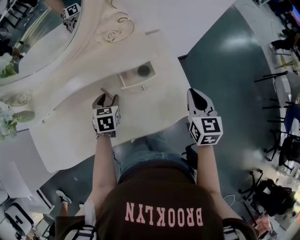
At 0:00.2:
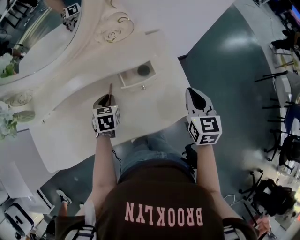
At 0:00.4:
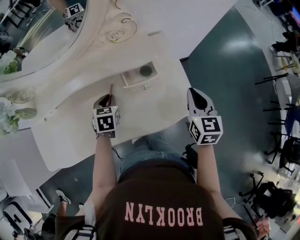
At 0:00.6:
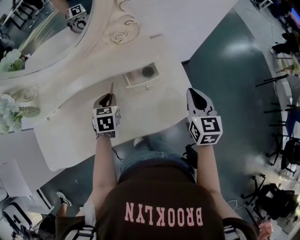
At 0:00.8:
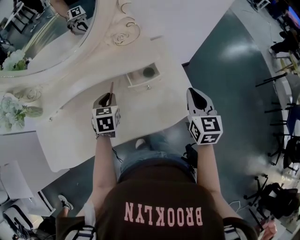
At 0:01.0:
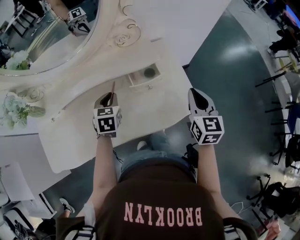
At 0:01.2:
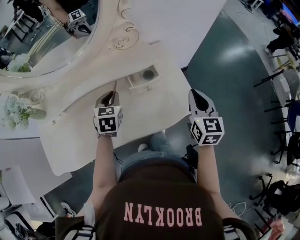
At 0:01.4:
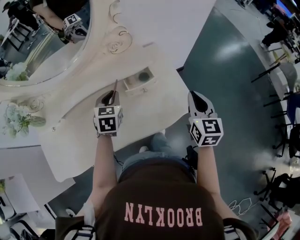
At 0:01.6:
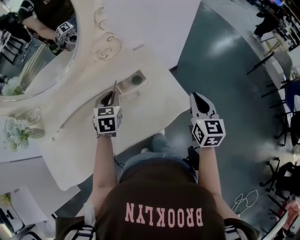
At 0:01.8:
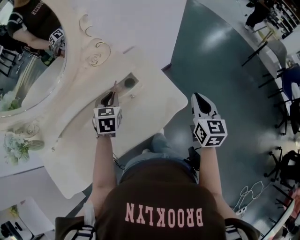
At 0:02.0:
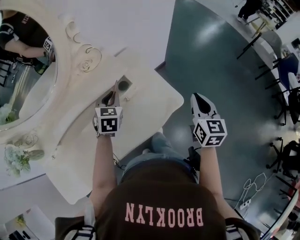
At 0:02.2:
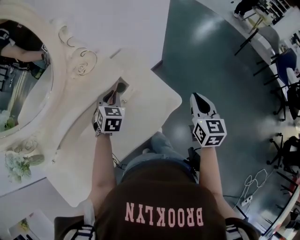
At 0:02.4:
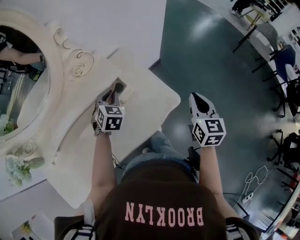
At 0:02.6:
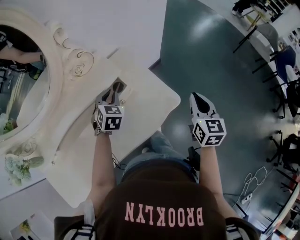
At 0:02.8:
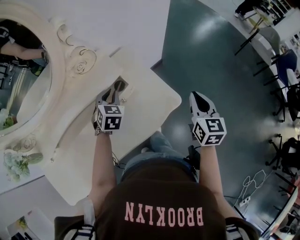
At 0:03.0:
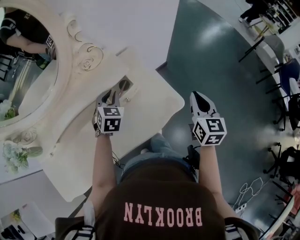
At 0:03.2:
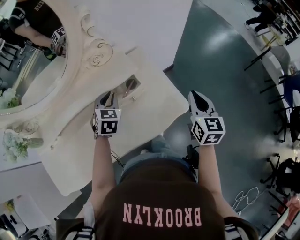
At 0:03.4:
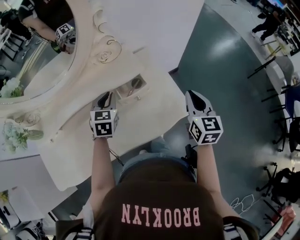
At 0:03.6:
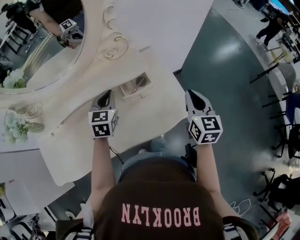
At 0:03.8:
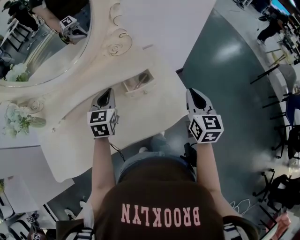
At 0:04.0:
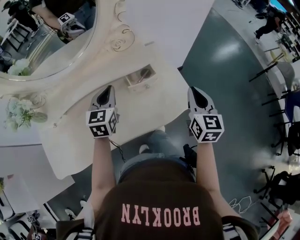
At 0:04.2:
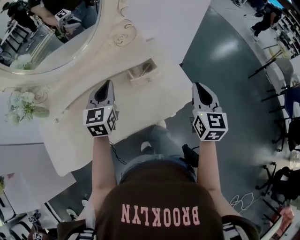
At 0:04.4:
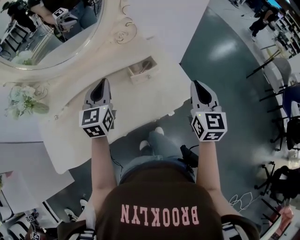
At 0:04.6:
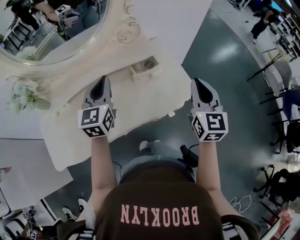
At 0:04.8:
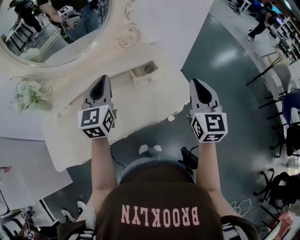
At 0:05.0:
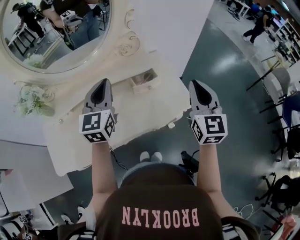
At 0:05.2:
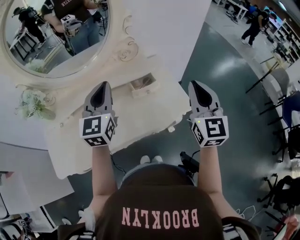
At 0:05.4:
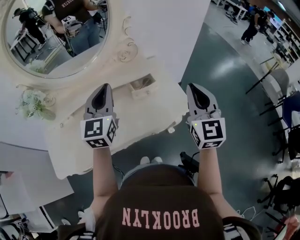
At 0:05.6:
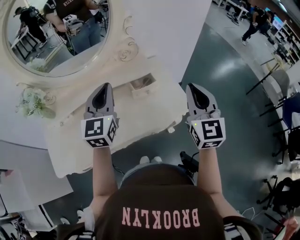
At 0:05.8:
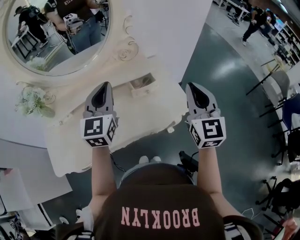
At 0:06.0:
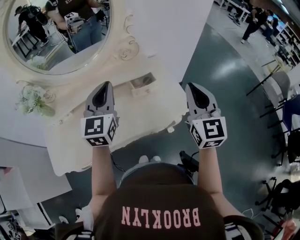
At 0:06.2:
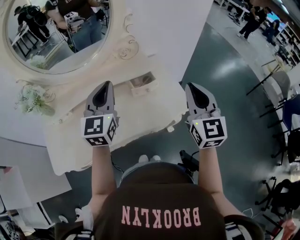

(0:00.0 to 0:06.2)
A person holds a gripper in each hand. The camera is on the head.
0:00.0 - 0:01.6: The left gripper goes some 10 cm upward, turns by roughly 20 degrees, and closes its fingers. Meanwhile the right gripper travels backward by approximately 5 cm.
0:01.6 - 0:03.2: The right gripper travels to the right and back again, some 10 cm each way, while the left gripper goes to the right and returns, some 10 cm each way.
0:03.2 - 0:04.6: The left gripper moves upward, backward and to the left, some 20 cm, and swivels about 40 degrees; the right gripper goes about 15 cm to the left, upward and backward.
0:04.6 - 0:06.2: Both grippers travel together upward, about 5 cm.

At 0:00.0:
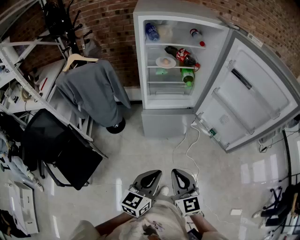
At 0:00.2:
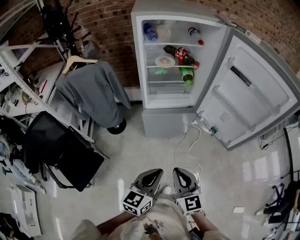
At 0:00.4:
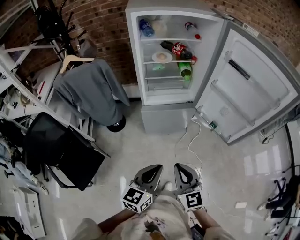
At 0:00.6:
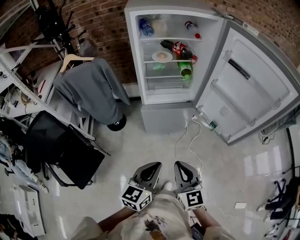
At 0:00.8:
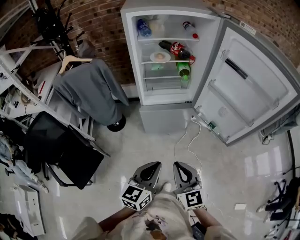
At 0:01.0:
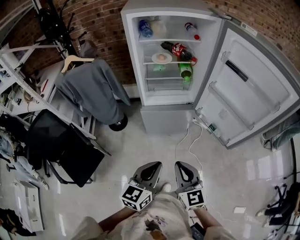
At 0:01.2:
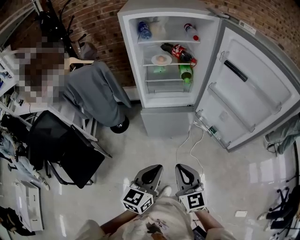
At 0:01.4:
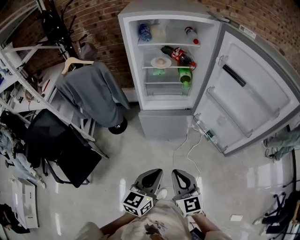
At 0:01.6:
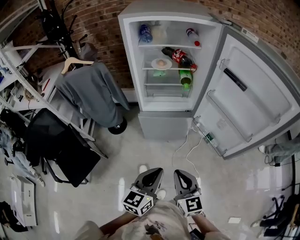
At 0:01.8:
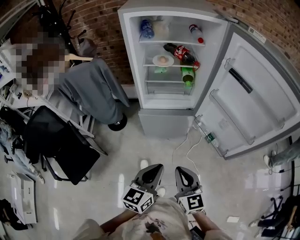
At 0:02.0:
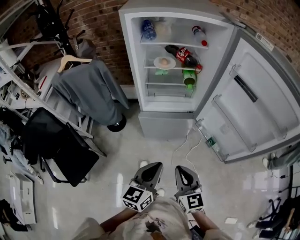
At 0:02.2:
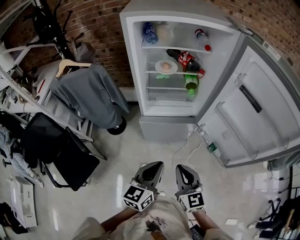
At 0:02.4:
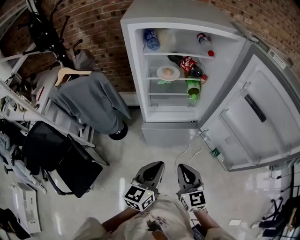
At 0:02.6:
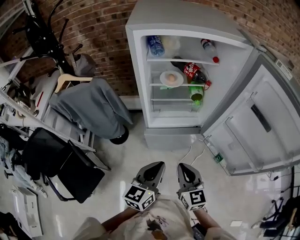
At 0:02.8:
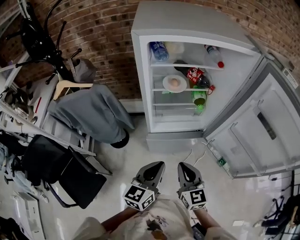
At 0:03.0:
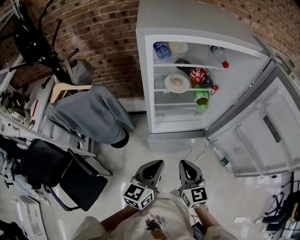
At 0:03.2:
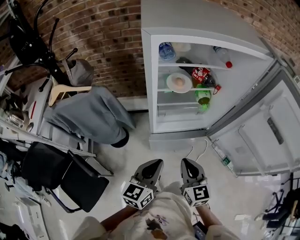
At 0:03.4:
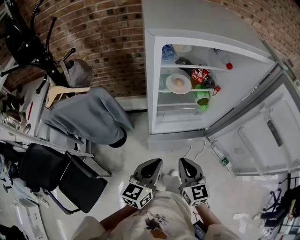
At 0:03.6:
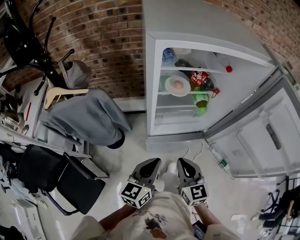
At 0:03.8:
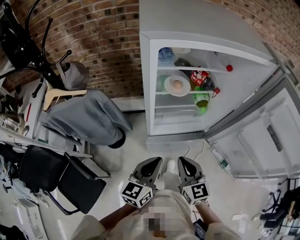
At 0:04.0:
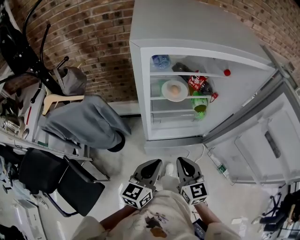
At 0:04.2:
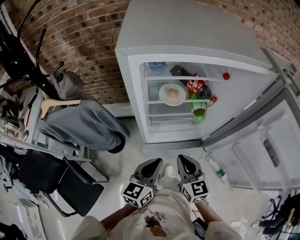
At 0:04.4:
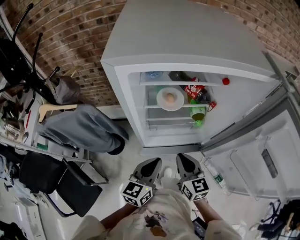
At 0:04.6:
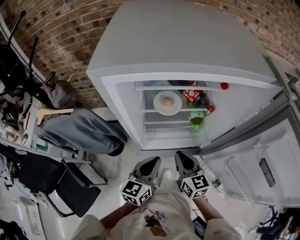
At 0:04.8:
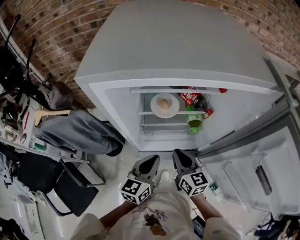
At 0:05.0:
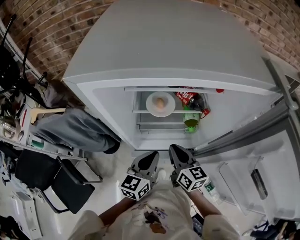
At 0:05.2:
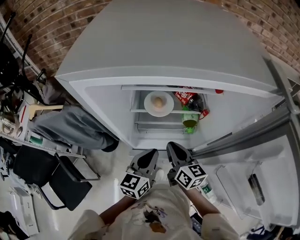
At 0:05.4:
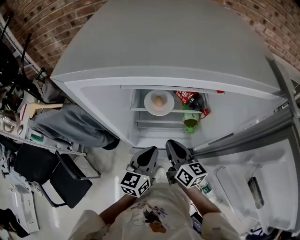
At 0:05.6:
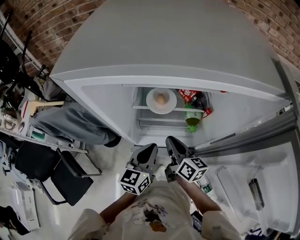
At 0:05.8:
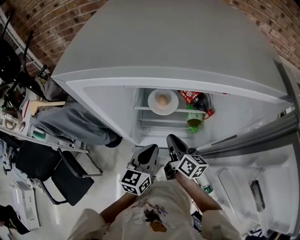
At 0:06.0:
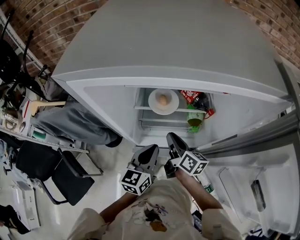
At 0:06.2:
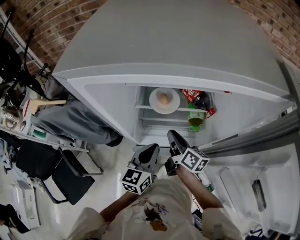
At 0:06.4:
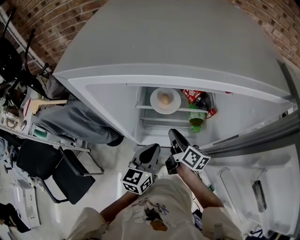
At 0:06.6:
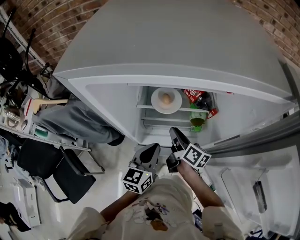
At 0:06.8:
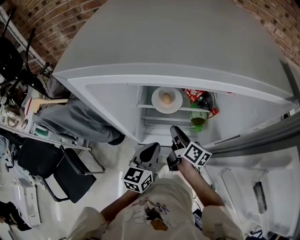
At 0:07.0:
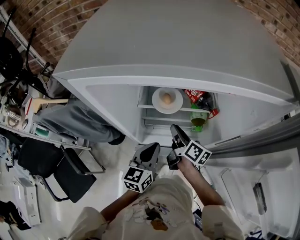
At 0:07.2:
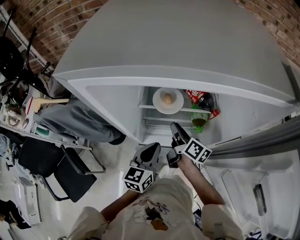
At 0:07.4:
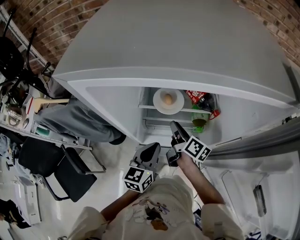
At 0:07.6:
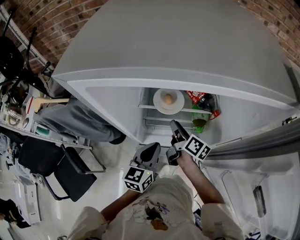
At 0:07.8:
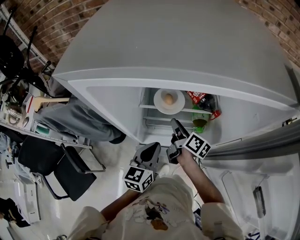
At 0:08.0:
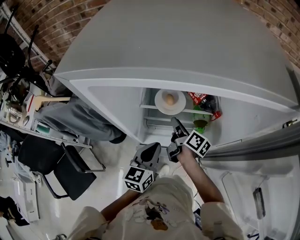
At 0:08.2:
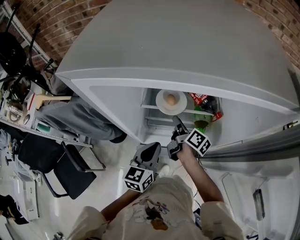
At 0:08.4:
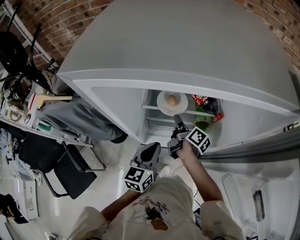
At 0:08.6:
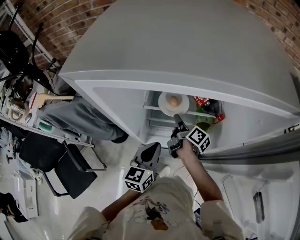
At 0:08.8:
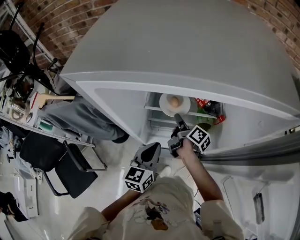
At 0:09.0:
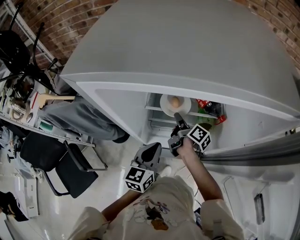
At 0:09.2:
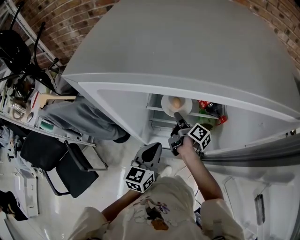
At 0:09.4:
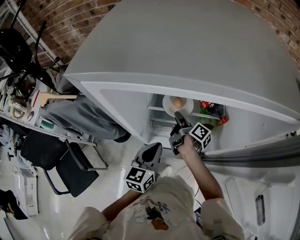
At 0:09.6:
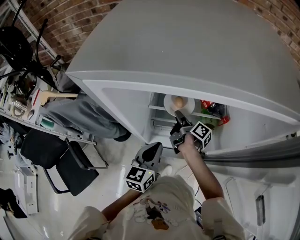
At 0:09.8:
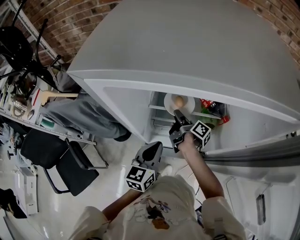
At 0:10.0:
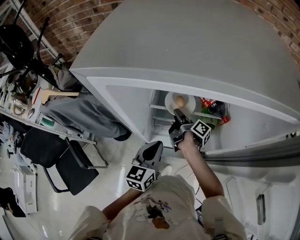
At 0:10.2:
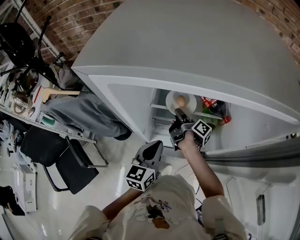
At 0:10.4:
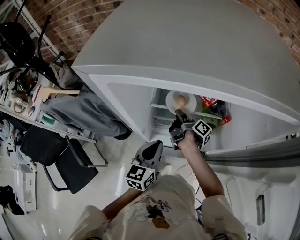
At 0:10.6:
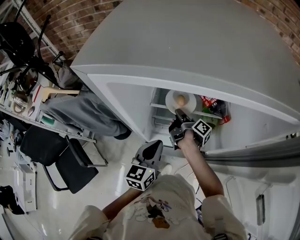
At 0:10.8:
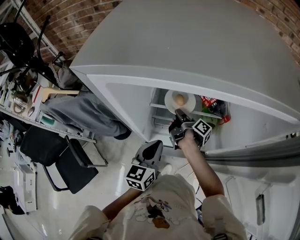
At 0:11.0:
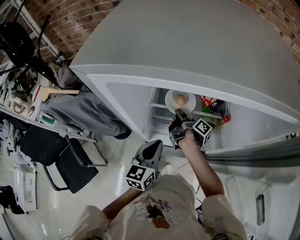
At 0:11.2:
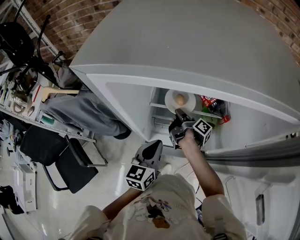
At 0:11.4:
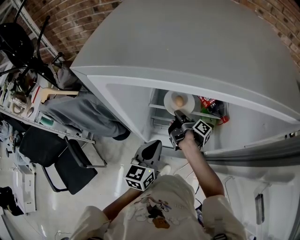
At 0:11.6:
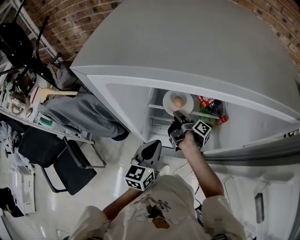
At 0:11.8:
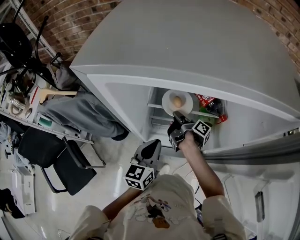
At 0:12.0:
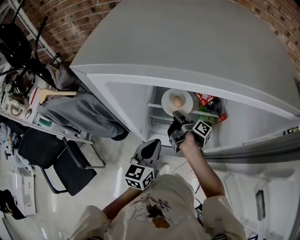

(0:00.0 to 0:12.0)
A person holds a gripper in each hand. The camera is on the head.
0:00.0 - 0:01.6: Both grippers move to the right, about 10 cm.
0:01.6 - 0:03.0: Both grippers travel together forward and to the left, about 30 cm.
0:03.0 - 0:04.4: Both grippers travel together forward, roughly 15 cm.
0:04.4 - 0:06.0: The right gripper goes approximately 15 cm forward, and rolls clockwise, seen from behind, by about 40 degrees, while the left gripper shifts some 10 cm forward and to the right.
0:06.0 - 0:07.6: The right gripper goes approximately 5 cm forward.
0:07.6 - 0:09.0: The right gripper heads forward, covering roughly 5 cm.
0:09.0 - 0:10.4: The right gripper closes up.
0:10.4 - 0:12.0: The grippers make only small movements.

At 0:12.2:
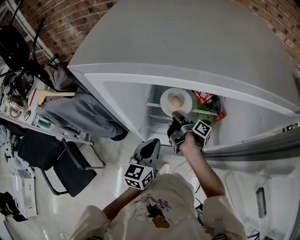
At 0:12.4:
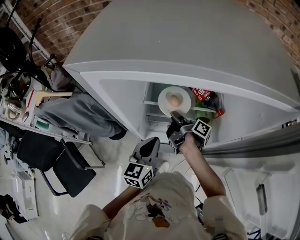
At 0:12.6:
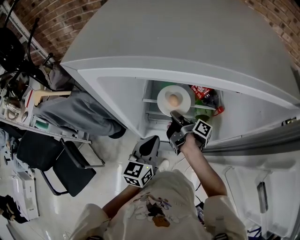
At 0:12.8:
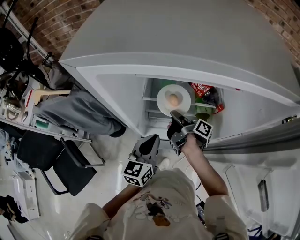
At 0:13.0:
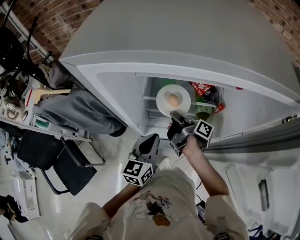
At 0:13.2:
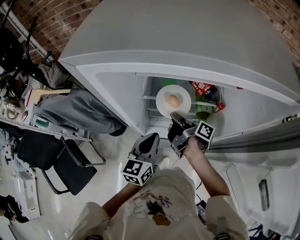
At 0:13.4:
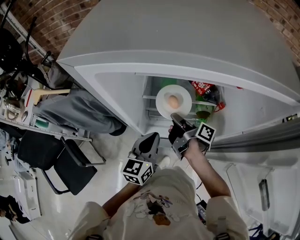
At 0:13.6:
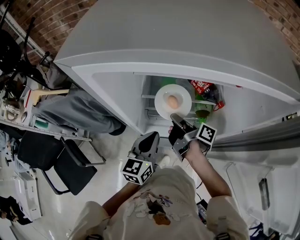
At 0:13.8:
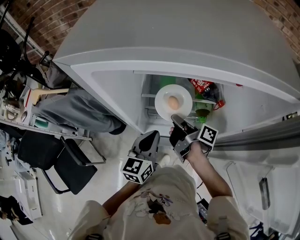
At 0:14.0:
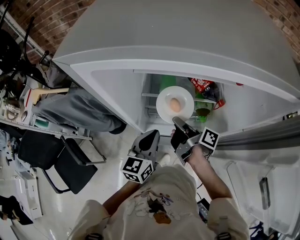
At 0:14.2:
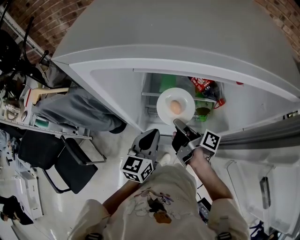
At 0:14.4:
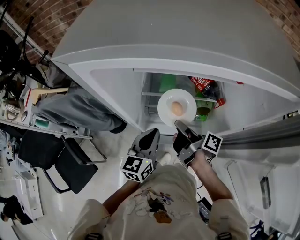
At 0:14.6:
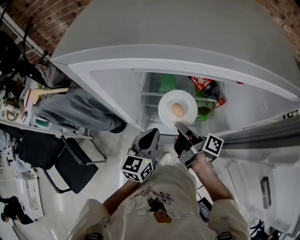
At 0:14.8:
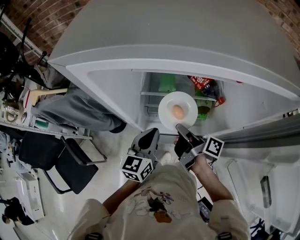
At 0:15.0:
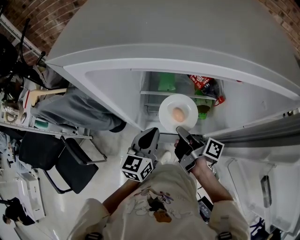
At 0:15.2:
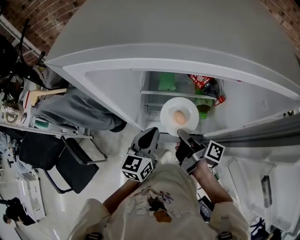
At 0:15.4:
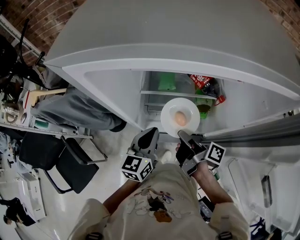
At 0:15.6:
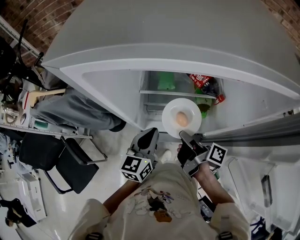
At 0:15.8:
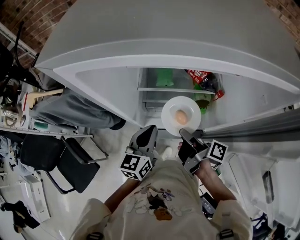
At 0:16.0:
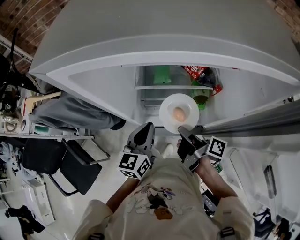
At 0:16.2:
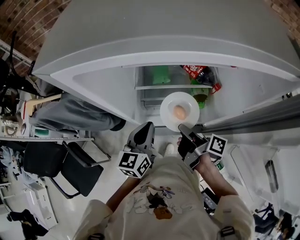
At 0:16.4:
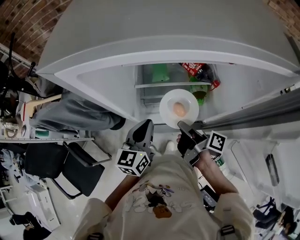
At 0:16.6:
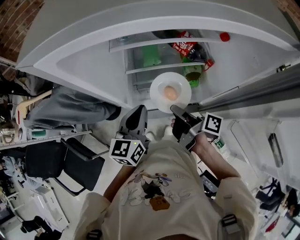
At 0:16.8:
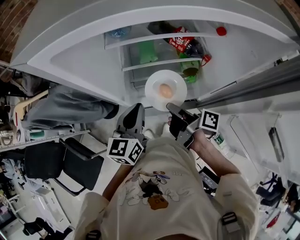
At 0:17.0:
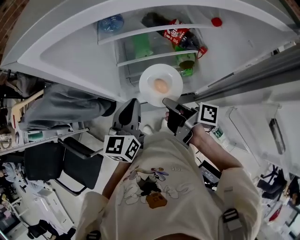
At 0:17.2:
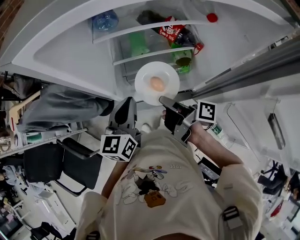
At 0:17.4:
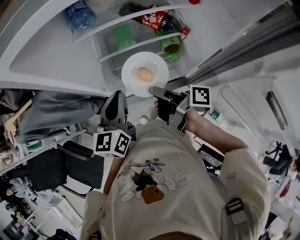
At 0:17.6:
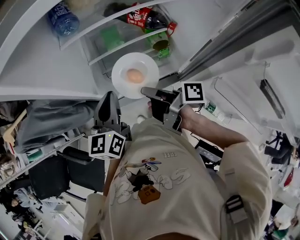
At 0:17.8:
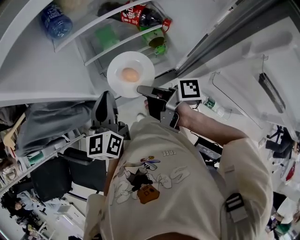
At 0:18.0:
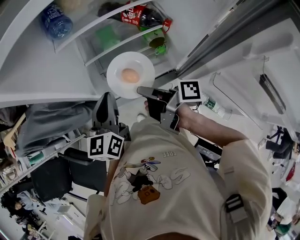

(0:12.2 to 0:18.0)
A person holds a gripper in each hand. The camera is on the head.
0:12.2 - 0:13.6: The right gripper heads backward, covering about 5 cm.
0:13.6 - 0:15.0: The right gripper is displaced backward by some 5 cm.
0:15.0 - 0:18.0: The grippers make only small movements.
